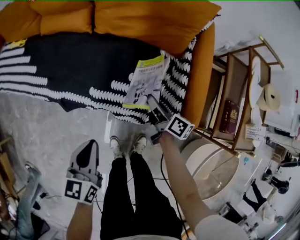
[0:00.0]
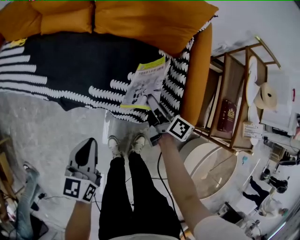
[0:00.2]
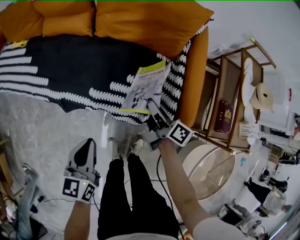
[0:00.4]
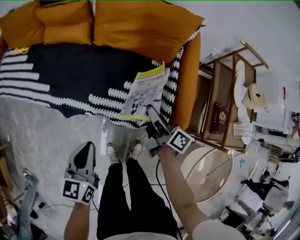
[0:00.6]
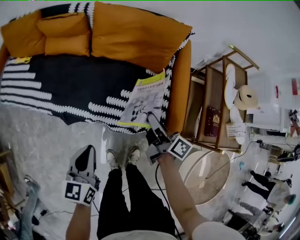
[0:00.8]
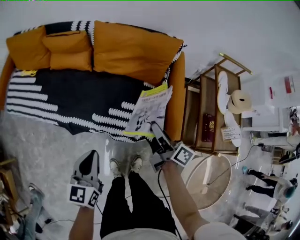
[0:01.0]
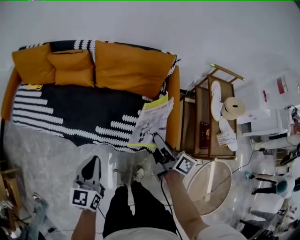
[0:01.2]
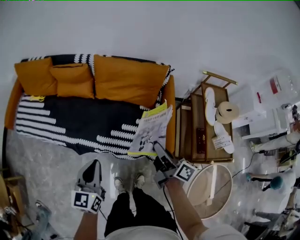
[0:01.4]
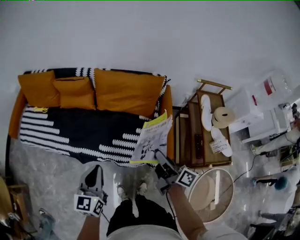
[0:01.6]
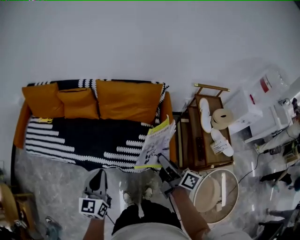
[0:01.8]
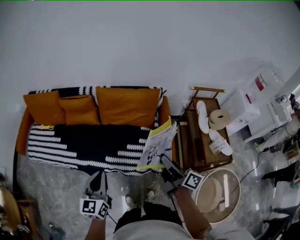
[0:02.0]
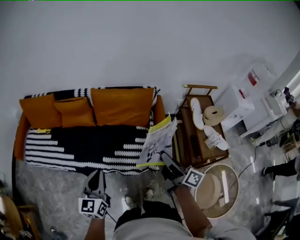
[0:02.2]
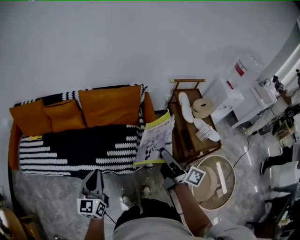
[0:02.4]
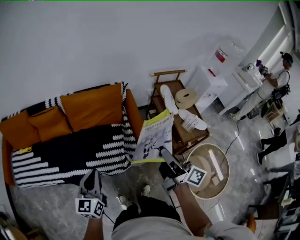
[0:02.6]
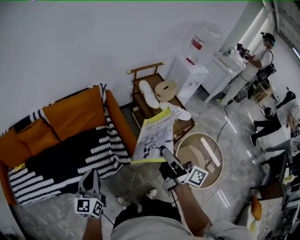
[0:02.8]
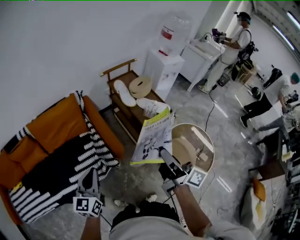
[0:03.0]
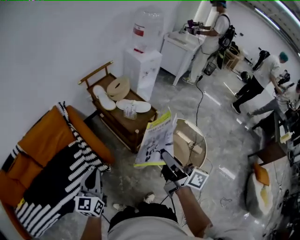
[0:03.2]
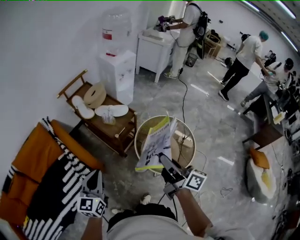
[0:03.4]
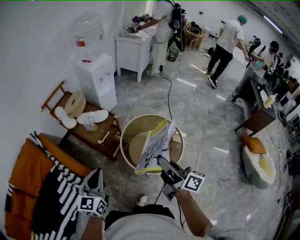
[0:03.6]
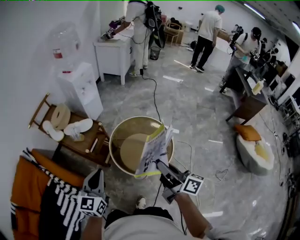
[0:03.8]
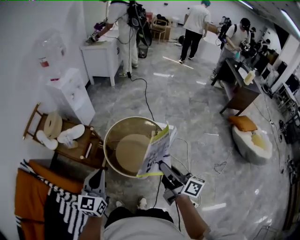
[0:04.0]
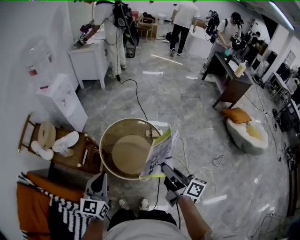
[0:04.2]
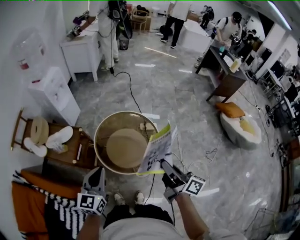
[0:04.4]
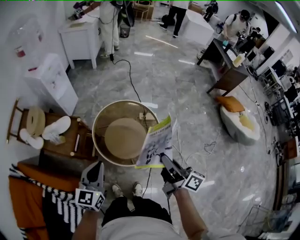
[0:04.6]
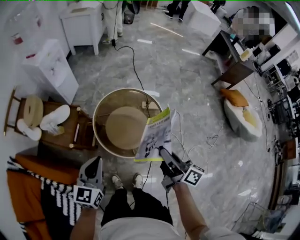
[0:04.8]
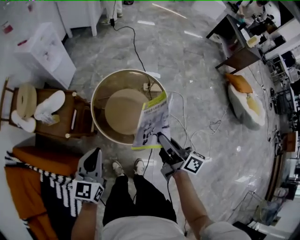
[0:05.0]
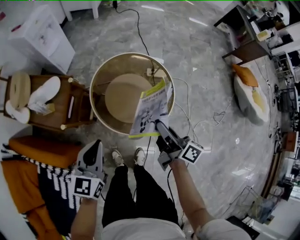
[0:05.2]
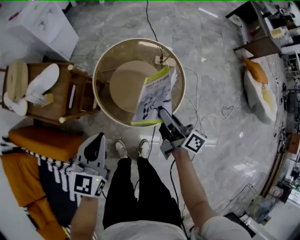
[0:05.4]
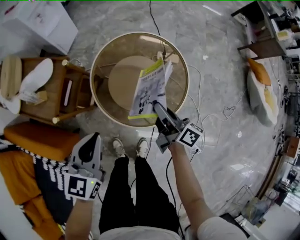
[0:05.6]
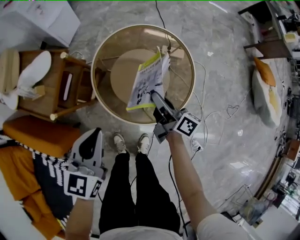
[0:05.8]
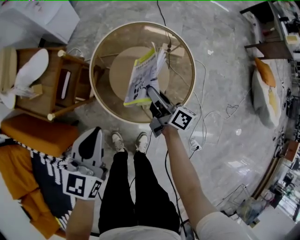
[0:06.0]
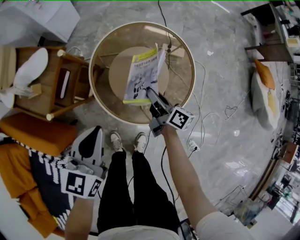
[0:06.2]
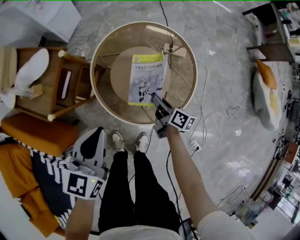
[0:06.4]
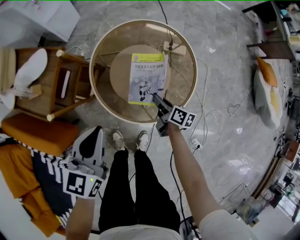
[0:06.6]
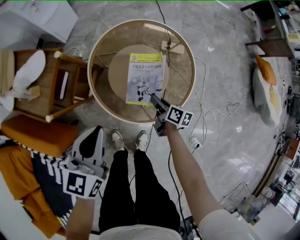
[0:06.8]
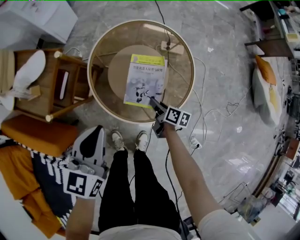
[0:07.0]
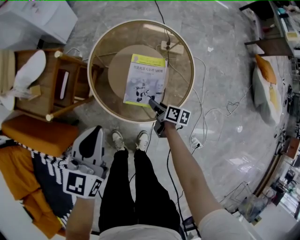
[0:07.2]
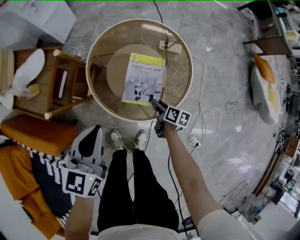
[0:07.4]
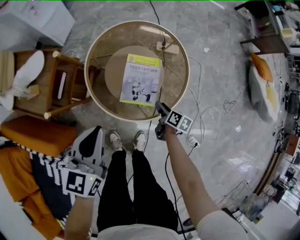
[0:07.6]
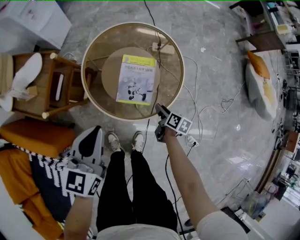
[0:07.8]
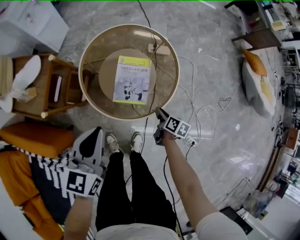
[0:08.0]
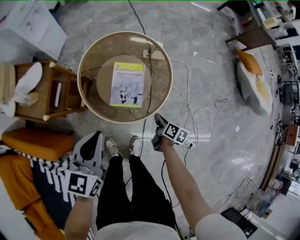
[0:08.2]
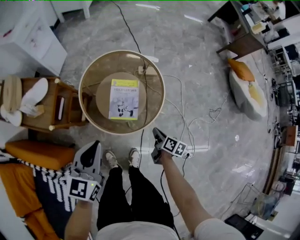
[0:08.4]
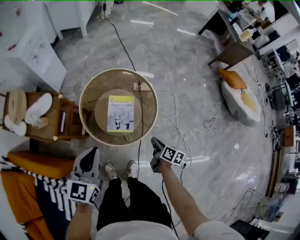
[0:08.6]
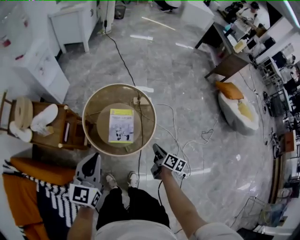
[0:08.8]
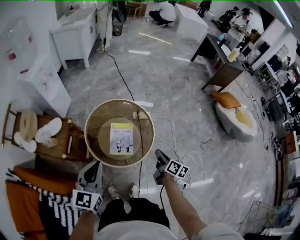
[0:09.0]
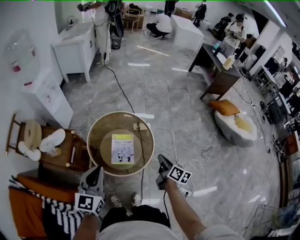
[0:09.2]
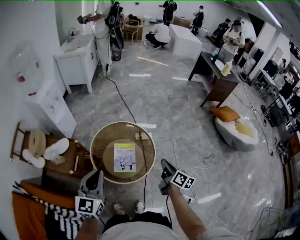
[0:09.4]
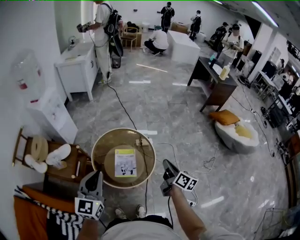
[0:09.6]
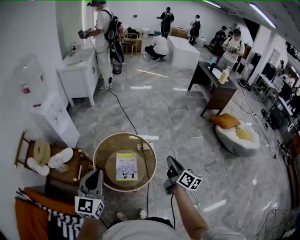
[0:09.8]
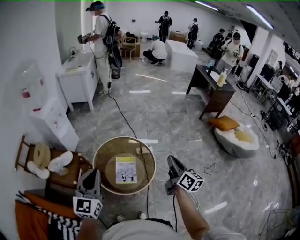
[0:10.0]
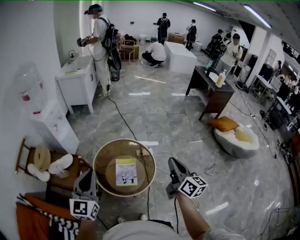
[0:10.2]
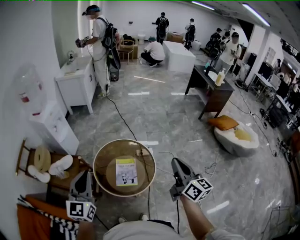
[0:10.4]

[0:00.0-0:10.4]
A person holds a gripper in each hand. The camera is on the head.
0.0 to 1.4 s: Both grippers move upward, approximately 30 cm.
1.4 to 3.0 s: The right gripper moves some 40 cm, and rotates roughly 40 degrees. Meanwhile the left gripper changes place by about 25 cm, and rotates roughly 40 degrees.
3.0 to 4.4 s: The two grippers travel together, roughly 50 cm. The left gripper turns by roughly 60 degrees; the right gripper turns by approximately 50 degrees.
4.4 to 6.0 s: The left gripper is displaced downward by about 20 cm; the right gripper travels downward and forward by about 40 cm.
6.0 to 7.4 s: The right gripper travels downward, backward and to the right by roughly 20 cm, and angles its fingers downward, by approximately 40 degrees.
7.4 to 9.0 s: The left gripper goes some 20 cm upward. The right gripper shifts some 30 cm upward, turns by about 30 degrees, and closes up.
9.0 to 10.4 s: The left gripper heads upward, covering roughly 15 cm, while the right gripper moves upward, some 30 cm, and turns by approximately 40 degrees.

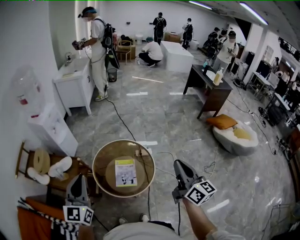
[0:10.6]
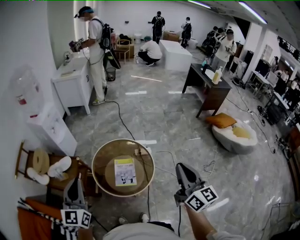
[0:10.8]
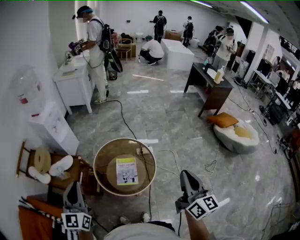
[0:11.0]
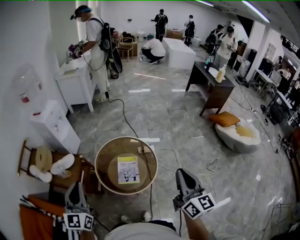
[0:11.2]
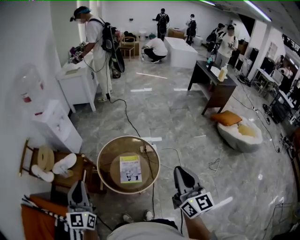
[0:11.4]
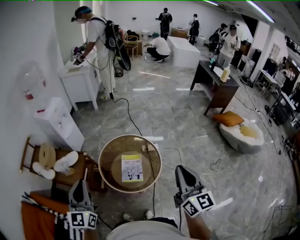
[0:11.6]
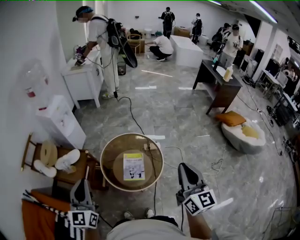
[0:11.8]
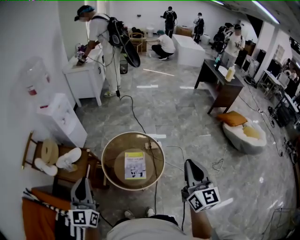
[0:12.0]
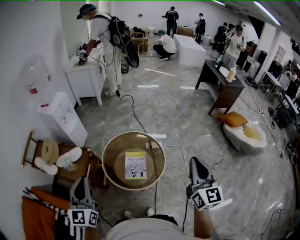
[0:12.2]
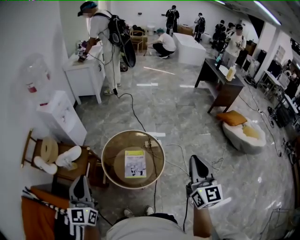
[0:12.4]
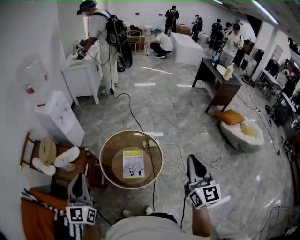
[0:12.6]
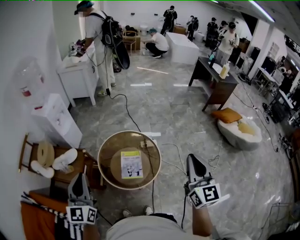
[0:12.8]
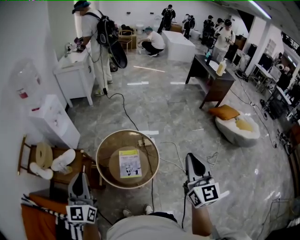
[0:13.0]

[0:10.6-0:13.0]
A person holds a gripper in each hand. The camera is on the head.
10.6 to 11.8 s: The left gripper shifts by about 5 cm.
11.8 to 13.0 s: The grippers move only a little.

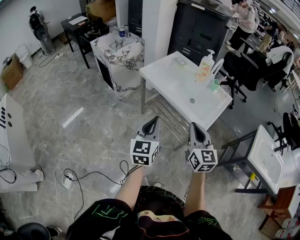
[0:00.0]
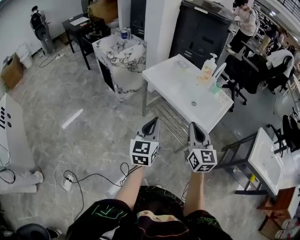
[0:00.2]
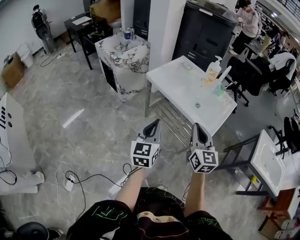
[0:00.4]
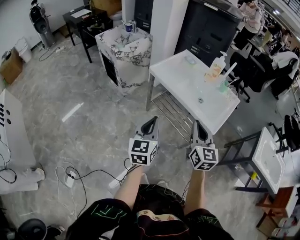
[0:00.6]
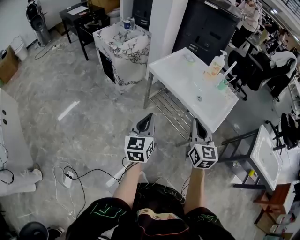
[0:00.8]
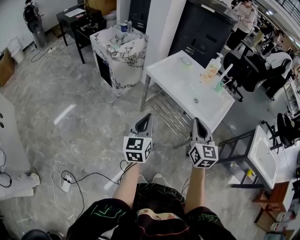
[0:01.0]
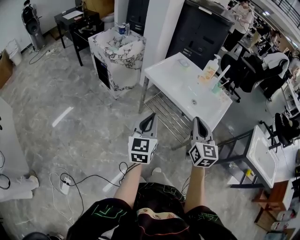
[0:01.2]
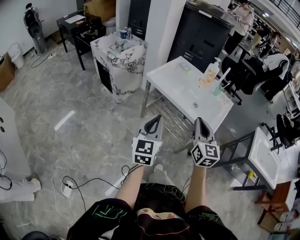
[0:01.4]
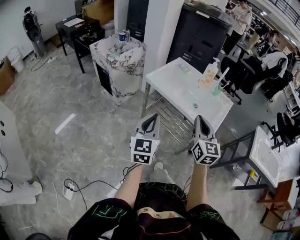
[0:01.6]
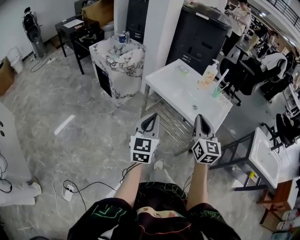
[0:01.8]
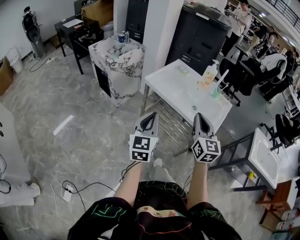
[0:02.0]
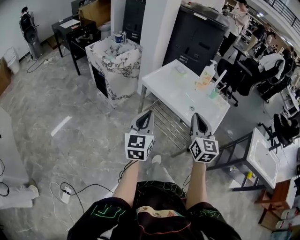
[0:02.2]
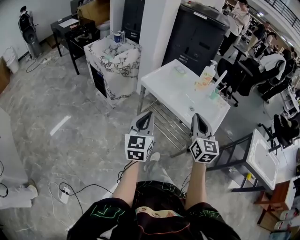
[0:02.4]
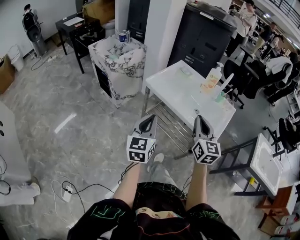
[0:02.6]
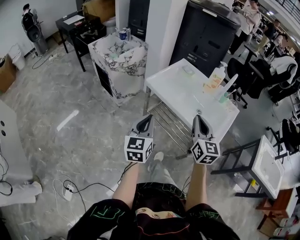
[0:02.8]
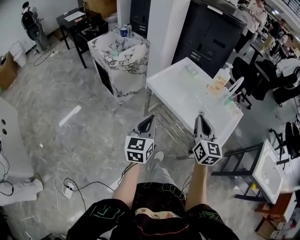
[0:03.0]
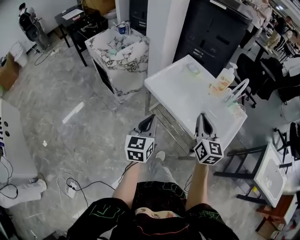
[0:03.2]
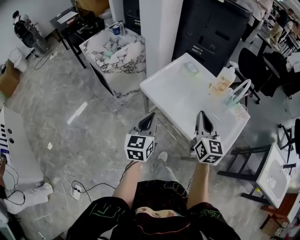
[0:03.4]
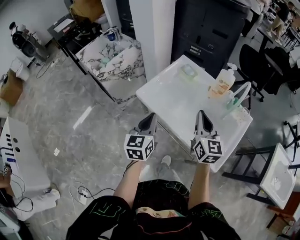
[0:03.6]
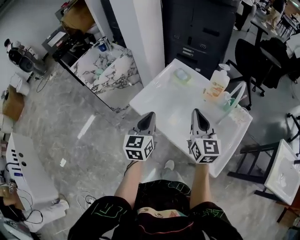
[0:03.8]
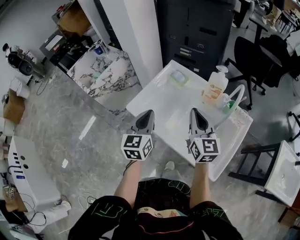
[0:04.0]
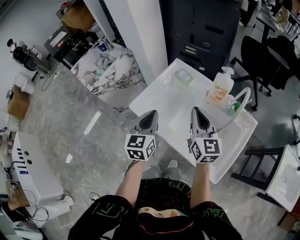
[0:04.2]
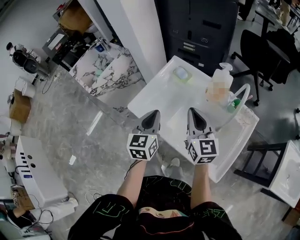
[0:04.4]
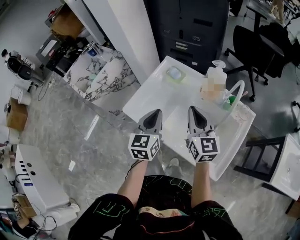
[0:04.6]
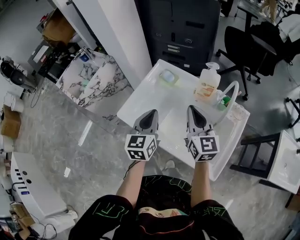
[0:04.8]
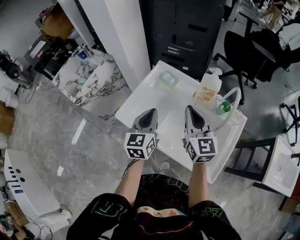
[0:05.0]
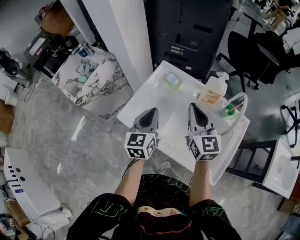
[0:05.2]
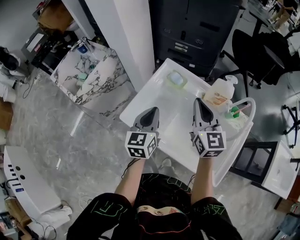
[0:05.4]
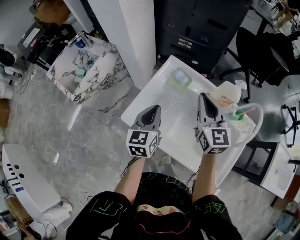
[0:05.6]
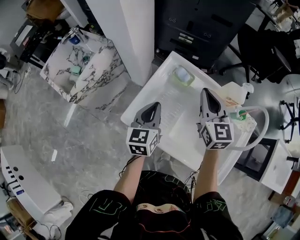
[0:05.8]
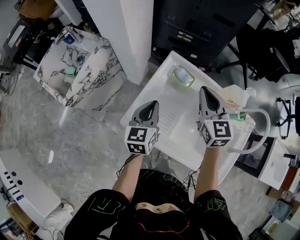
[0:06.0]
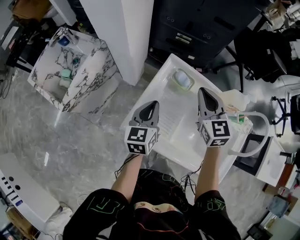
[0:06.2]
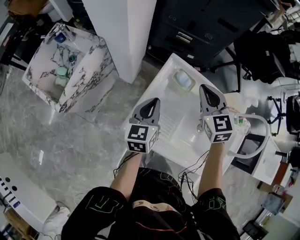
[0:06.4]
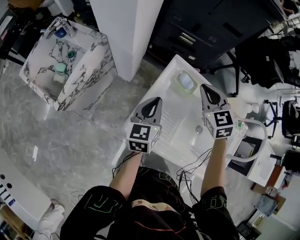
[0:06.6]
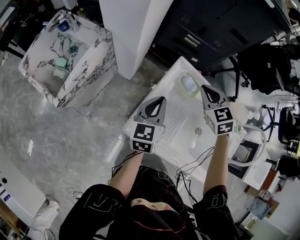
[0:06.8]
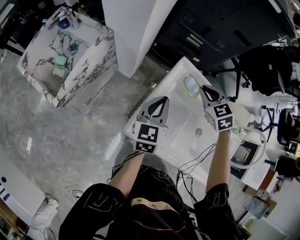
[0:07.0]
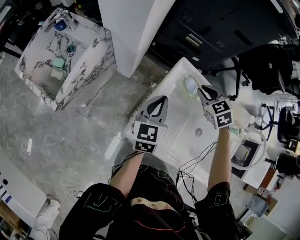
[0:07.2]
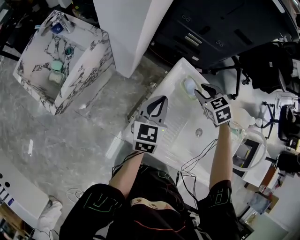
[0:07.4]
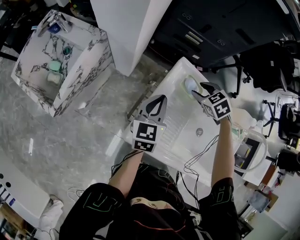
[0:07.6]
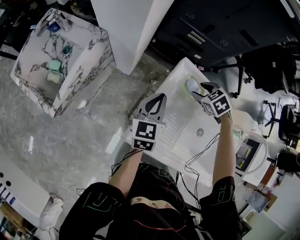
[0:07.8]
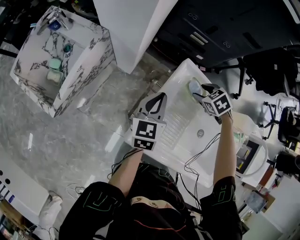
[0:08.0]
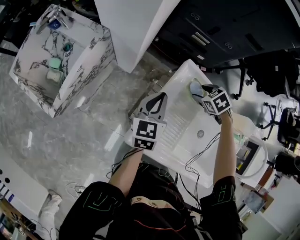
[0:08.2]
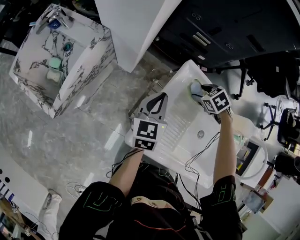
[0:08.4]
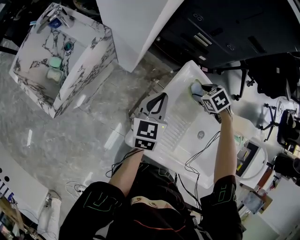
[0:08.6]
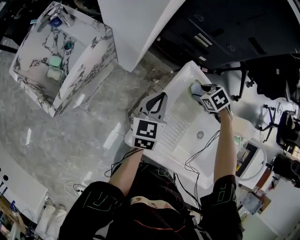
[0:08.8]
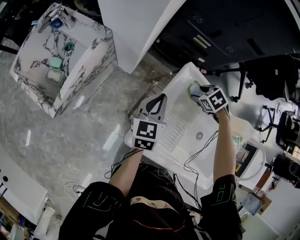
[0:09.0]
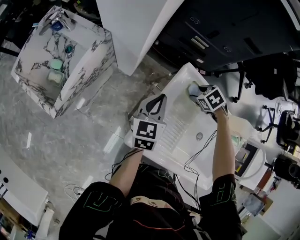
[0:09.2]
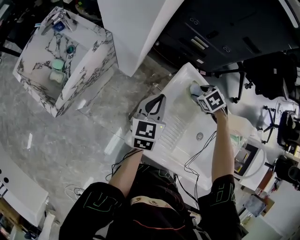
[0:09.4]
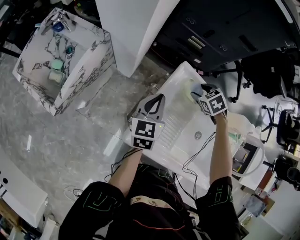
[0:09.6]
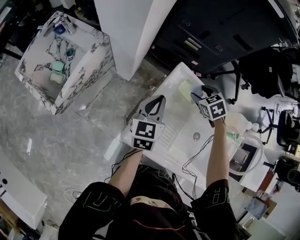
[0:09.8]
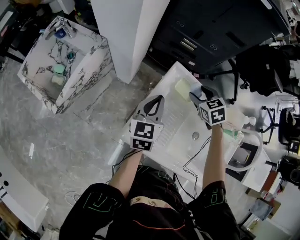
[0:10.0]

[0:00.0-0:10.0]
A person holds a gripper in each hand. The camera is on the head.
0.0 to 1.4 s: The two grippers go roughly 10 cm to the left.
1.4 to 2.8 s: Both grippers move forward, approximately 10 cm.
2.8 to 4.2 s: Both grippers move forward, some 30 cm.
4.2 to 5.8 s: The left gripper moves forward and downward, some 15 cm. Meanwhile the right gripper travels forward by some 15 cm.
5.8 to 7.2 s: The left gripper shifts roughly 10 cm forward and to the left. Meanwhile the right gripper moves downward, forward and to the left, roughly 20 cm, and angles its fingers downward, by about 40 degrees.
7.2 to 8.6 s: The right gripper travels downward by approximately 10 cm, turns by roughly 30 degrees, and opens. The left gripper changes place by roughly 5 cm.
8.6 to 10.0 s: The left gripper goes some 5 cm upward. Meanwhile the right gripper goes some 10 cm upward, and turns by some 30 degrees.

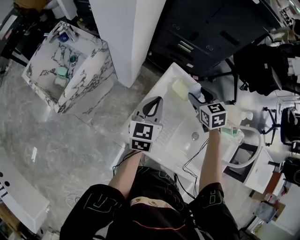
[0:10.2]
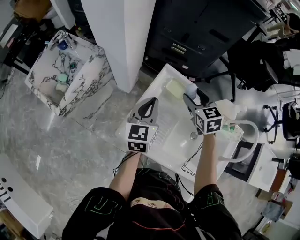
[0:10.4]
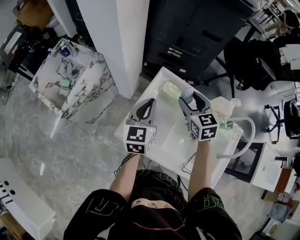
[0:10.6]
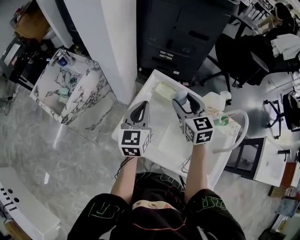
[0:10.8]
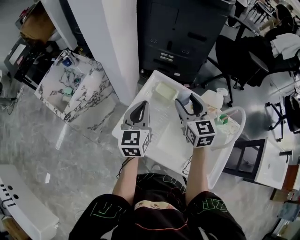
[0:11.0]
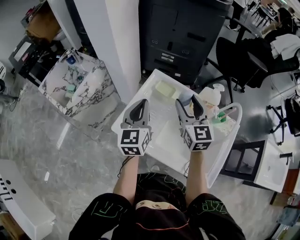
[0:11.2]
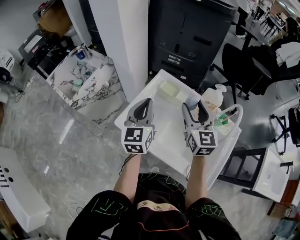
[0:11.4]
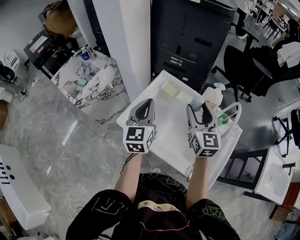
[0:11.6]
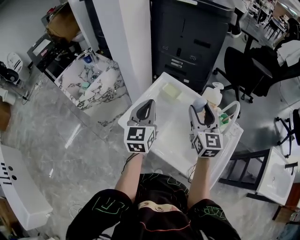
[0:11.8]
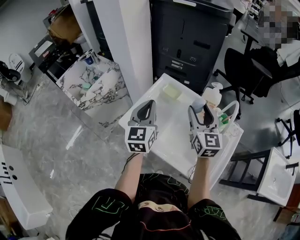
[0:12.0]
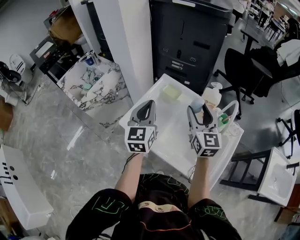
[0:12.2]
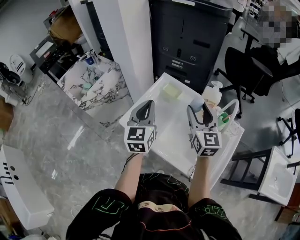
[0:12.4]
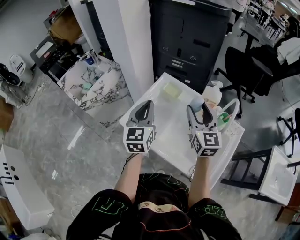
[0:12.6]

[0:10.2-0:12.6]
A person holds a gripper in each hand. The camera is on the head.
10.2 to 11.4 s: The grippers both shift backward and upward by approximately 20 cm. The right gripper points its fingers approximately 40 degrees further upward.
11.4 to 12.6 s: The grippers move only a little.
